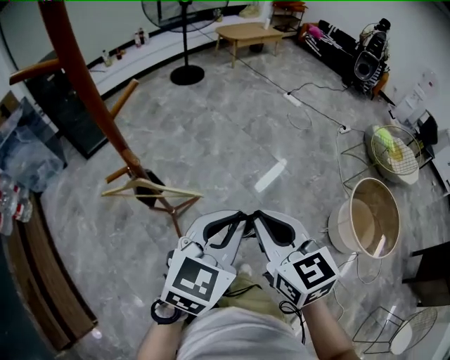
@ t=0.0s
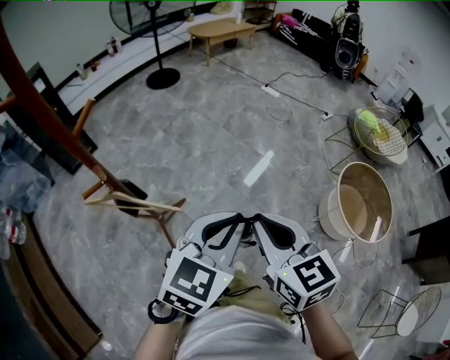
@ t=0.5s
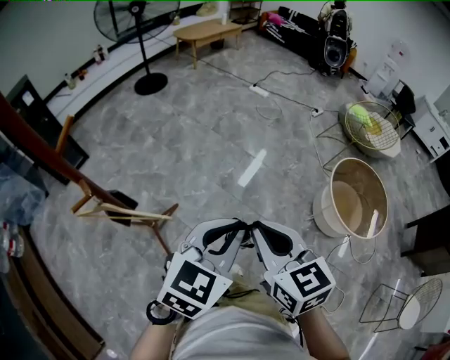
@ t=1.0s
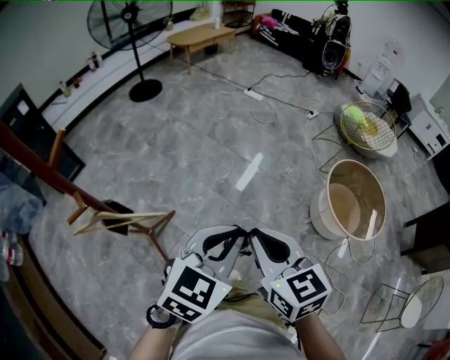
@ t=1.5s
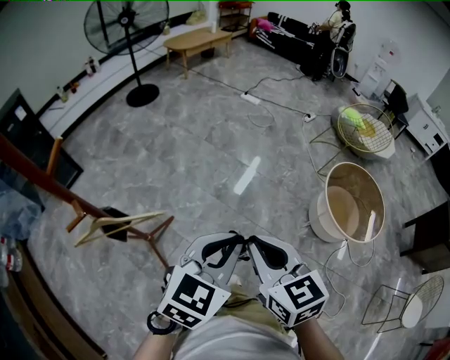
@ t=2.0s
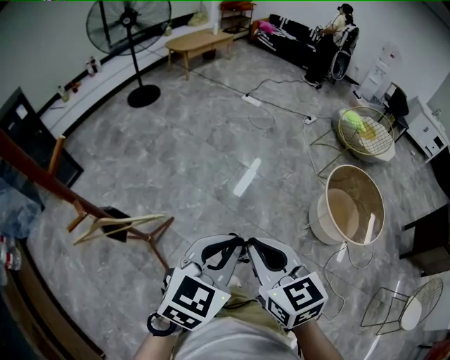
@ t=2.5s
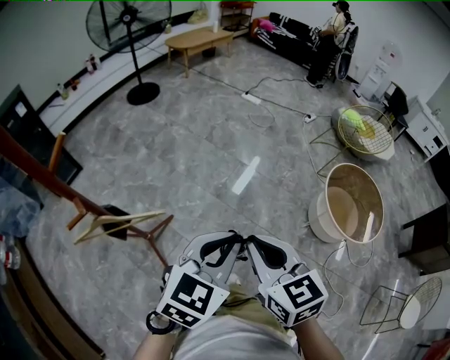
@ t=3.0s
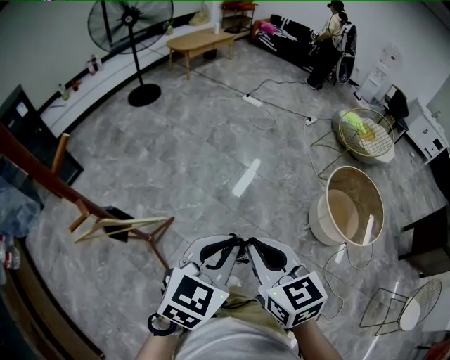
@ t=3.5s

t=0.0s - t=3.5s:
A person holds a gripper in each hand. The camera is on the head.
t=0.0s - t=2.0s: The two grippers go roughly 10 cm to the right.
t=2.0s - t=3.5s: The grippers stay close to where they were, moving slightly.

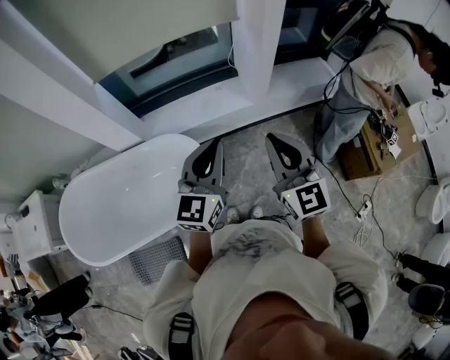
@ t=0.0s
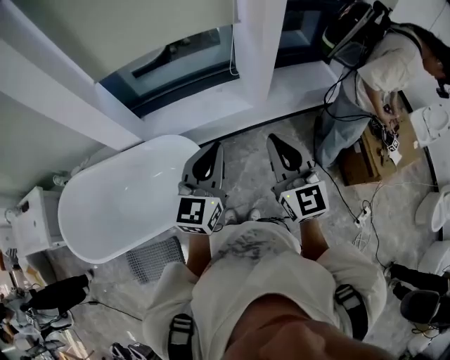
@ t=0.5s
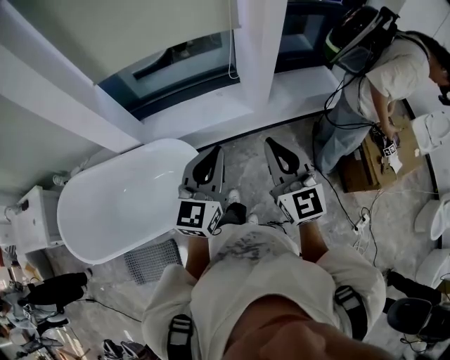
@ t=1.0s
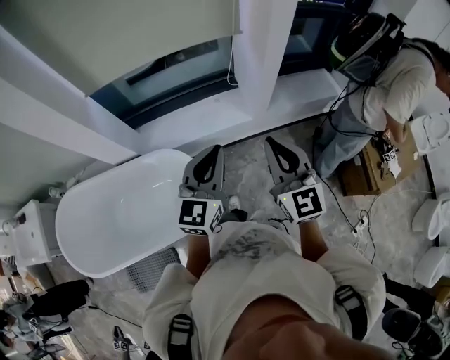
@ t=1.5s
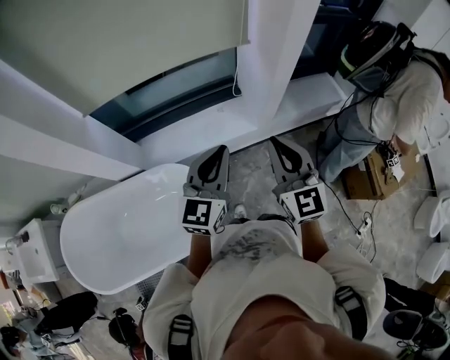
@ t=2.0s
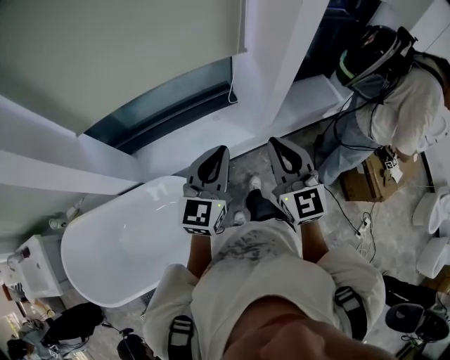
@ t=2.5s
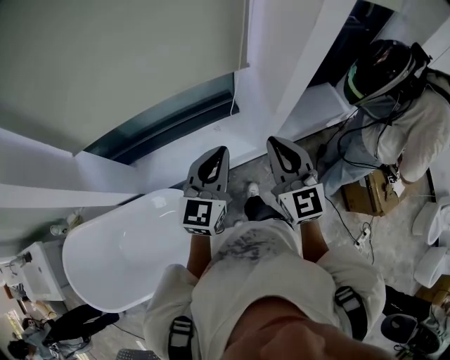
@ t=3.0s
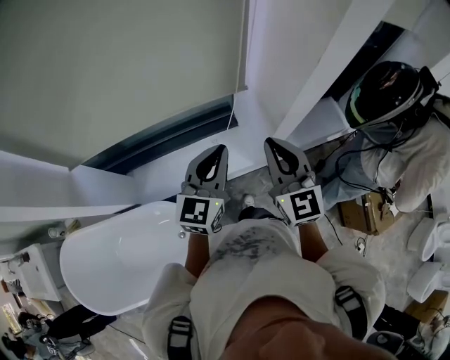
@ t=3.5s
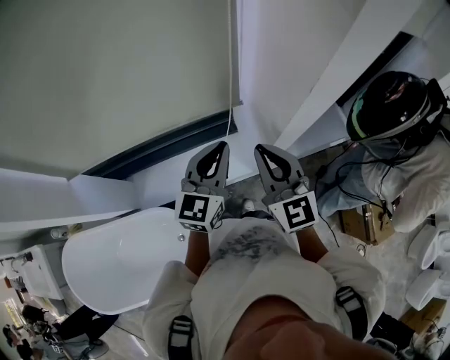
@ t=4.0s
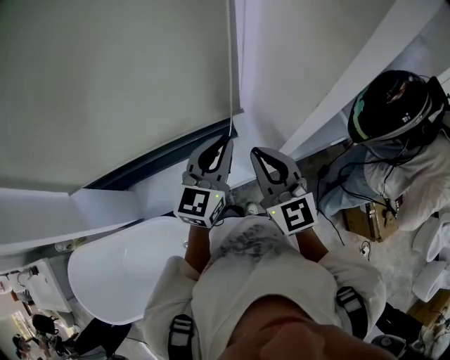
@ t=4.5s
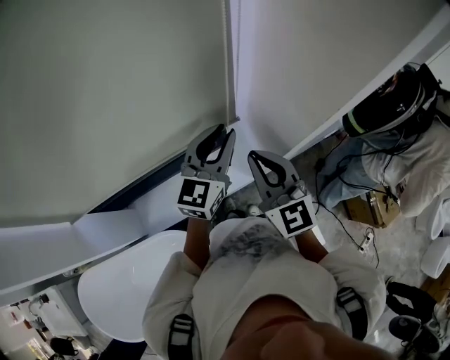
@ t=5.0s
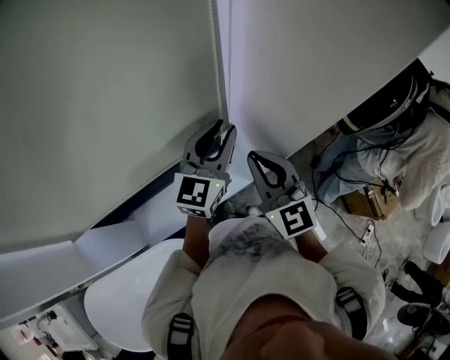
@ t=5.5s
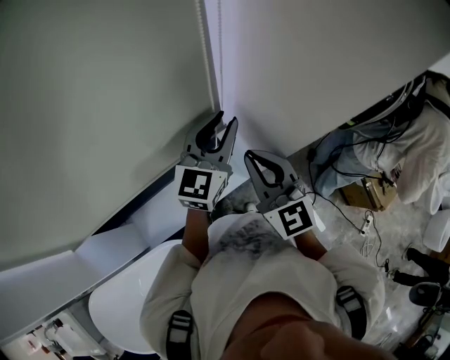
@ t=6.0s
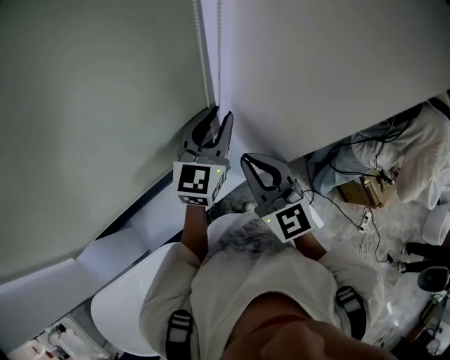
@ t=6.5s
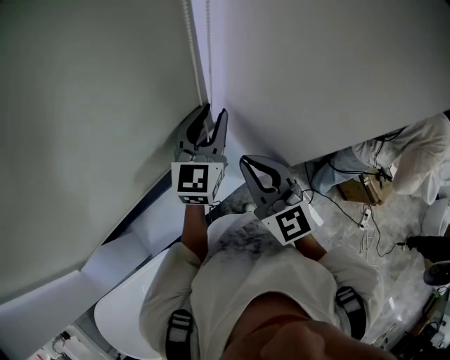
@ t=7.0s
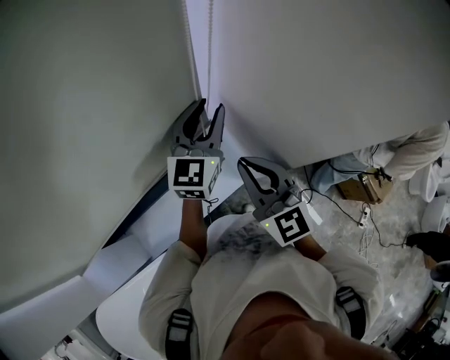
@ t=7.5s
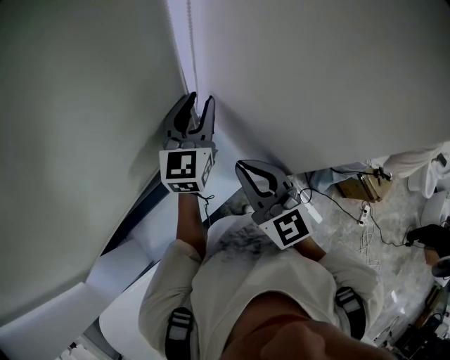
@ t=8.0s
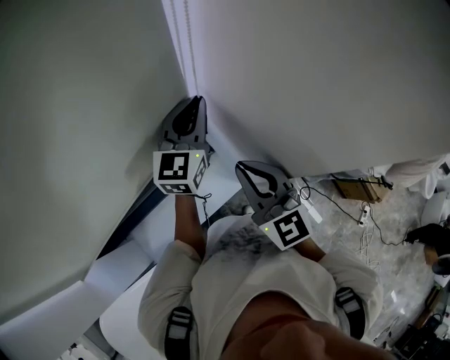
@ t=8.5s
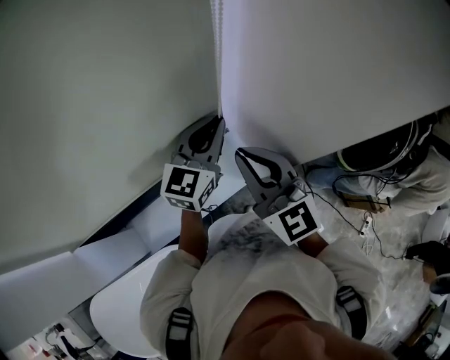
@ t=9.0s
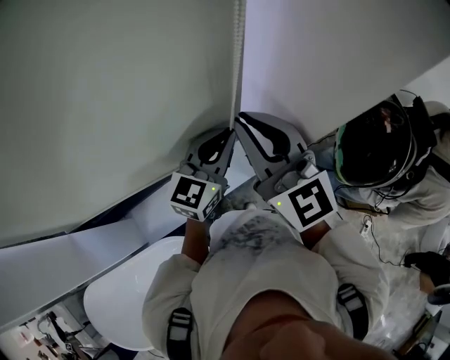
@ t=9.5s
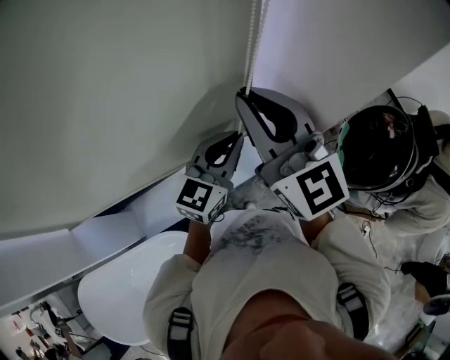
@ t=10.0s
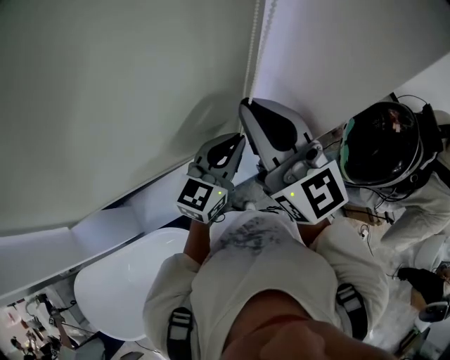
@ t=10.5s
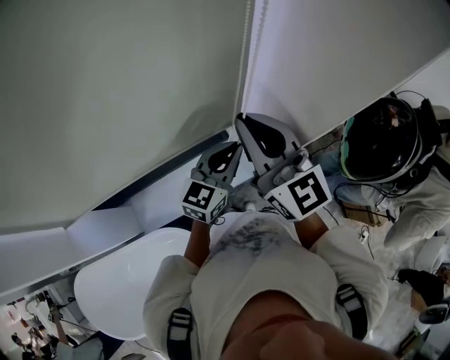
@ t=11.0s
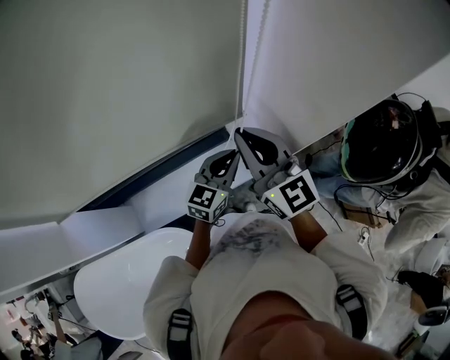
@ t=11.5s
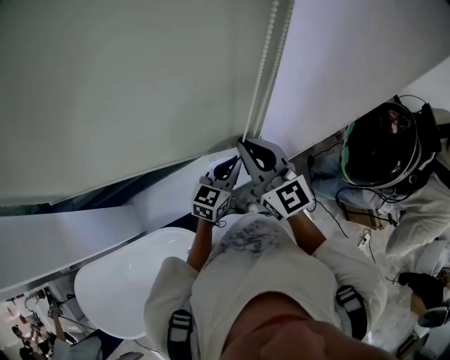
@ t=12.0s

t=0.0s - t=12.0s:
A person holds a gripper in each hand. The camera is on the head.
t=0.0s - t=2.0s: The grippers both shift forward by approximately 20 cm.
t=2.0s - t=4.0s: The grippers both shift forward by some 30 cm.
t=4.0s - t=6.0s: The left gripper travels forward by approximately 15 cm, and opens, while the right gripper shifts approximately 5 cm forward.
t=6.0s - t=8.0s: The left gripper is displaced forward by approximately 10 cm.
t=8.0s - t=10.0s: The left gripper heads backward, covering roughly 15 cm, and closes its fingers, while the right gripper is displaced upward by approximately 15 cm.
t=10.0s - t=12.0s: The two grippers go about 15 cm downward.

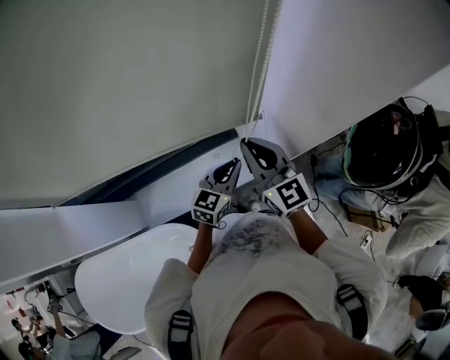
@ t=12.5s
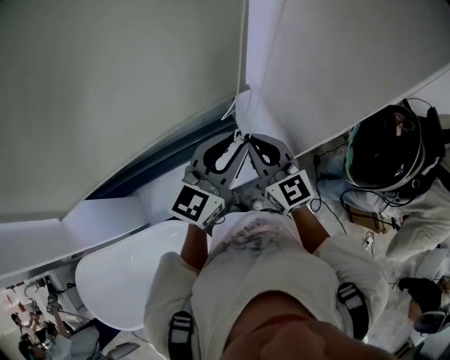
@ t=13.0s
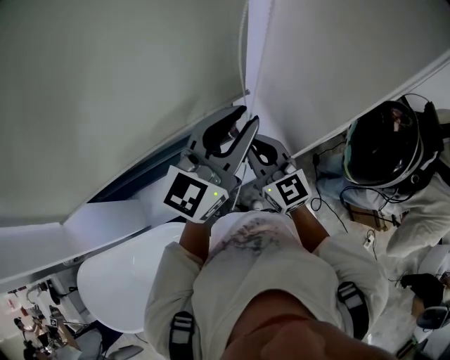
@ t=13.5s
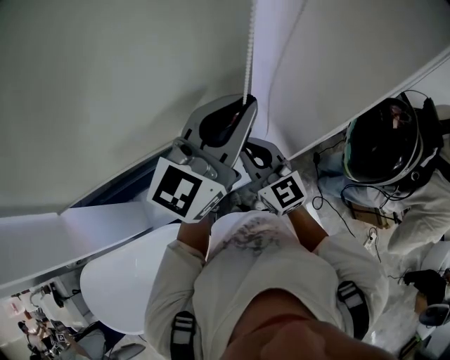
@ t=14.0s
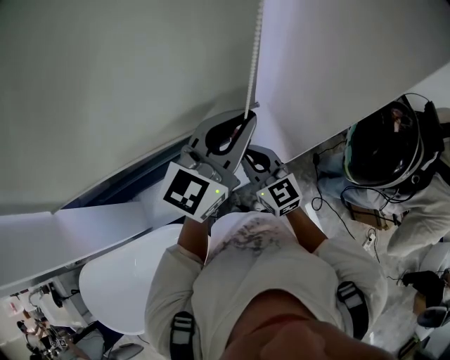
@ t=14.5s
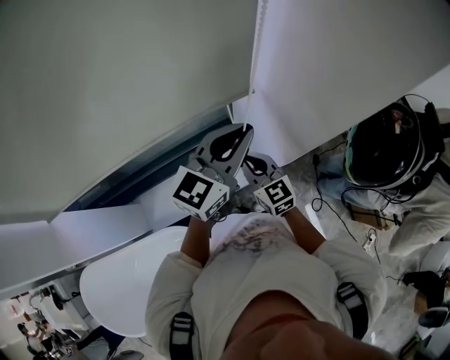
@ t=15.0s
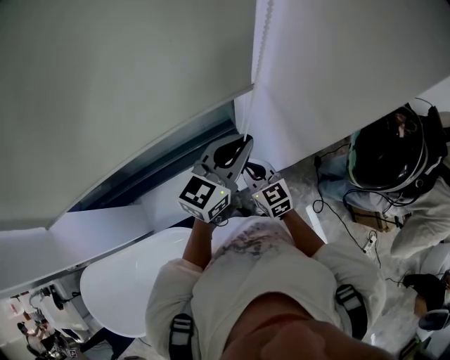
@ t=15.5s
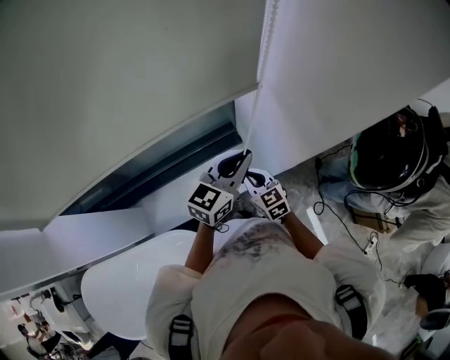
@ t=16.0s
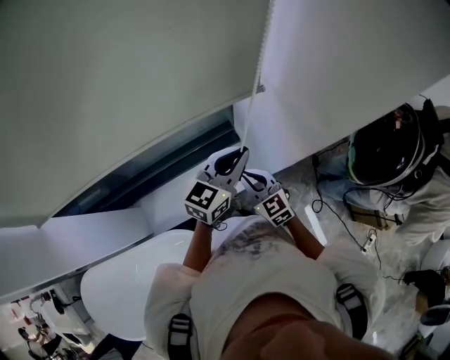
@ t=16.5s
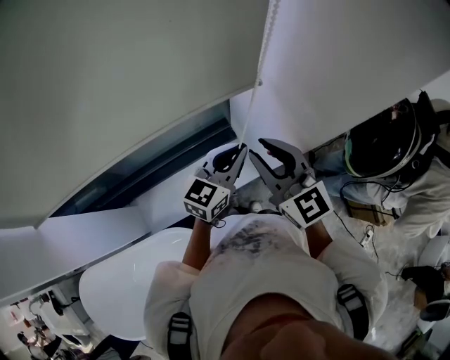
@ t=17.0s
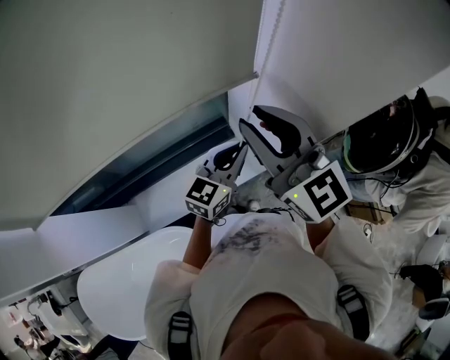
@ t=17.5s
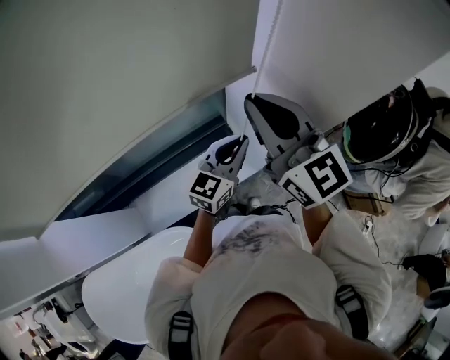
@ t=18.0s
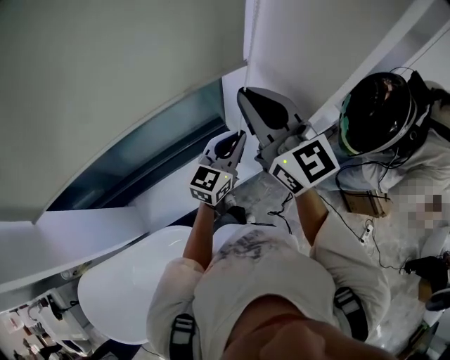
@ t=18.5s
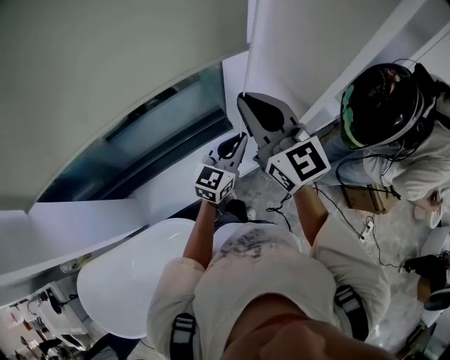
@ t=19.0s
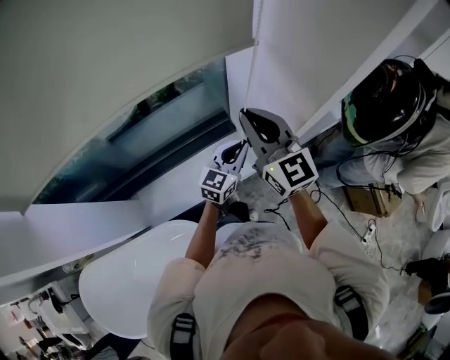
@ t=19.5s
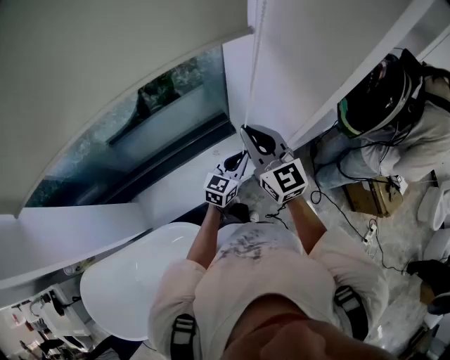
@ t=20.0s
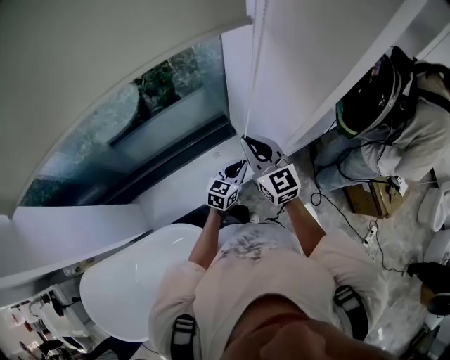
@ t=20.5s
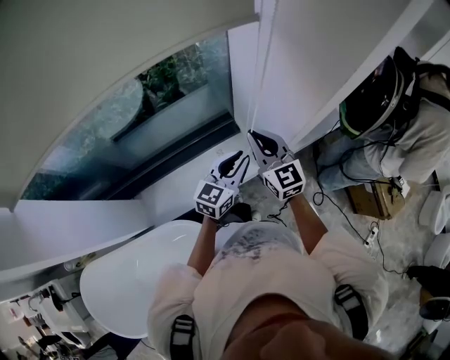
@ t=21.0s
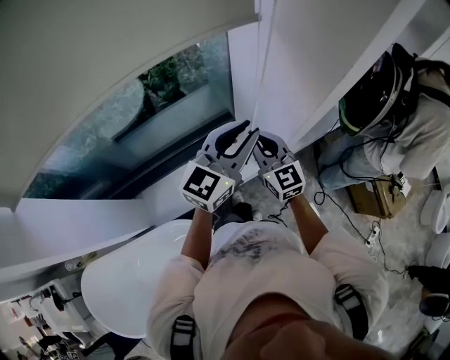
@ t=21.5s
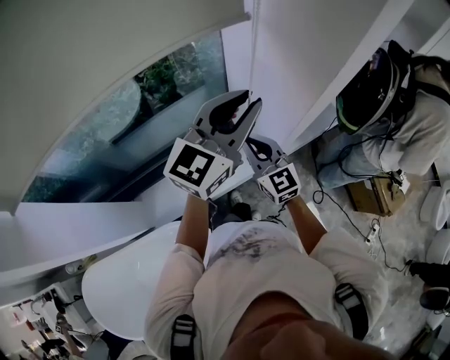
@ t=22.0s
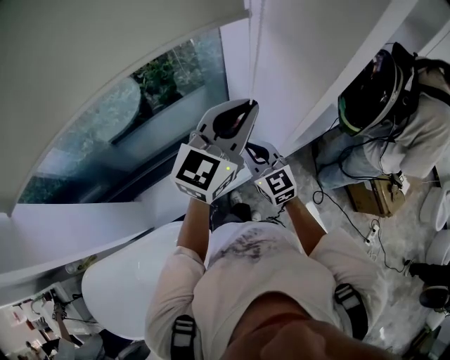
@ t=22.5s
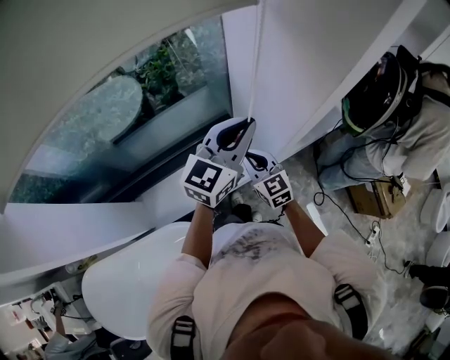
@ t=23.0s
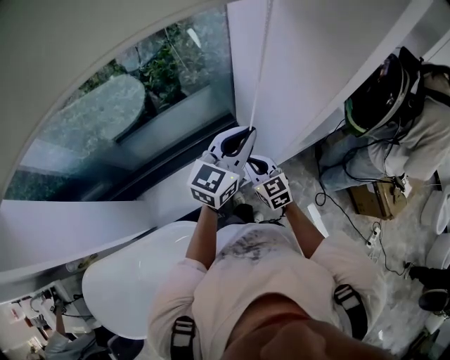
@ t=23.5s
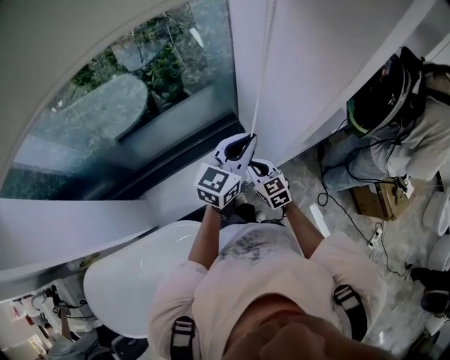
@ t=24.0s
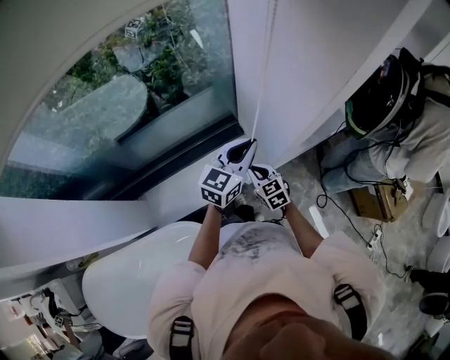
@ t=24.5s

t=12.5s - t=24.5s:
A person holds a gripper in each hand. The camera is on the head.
t=12.5s - t=14.5s: The left gripper heads upward, covering approximately 25 cm, and rotates approximately 30 degrees.
t=14.5s - t=16.5s: The two grippers go some 15 cm downward.
t=16.5s - t=18.5s: The right gripper shifts roughly 30 cm upward, and tips its fingers upward by about 30 degrees.
t=18.5s - t=20.5s: The two grippers go some 20 cm downward.
t=20.5s - t=22.5s: The left gripper is displaced upward by some 35 cm, and rotates approximately 30 degrees.
t=22.5s - t=24.5s: The two grippers go roughly 20 cm downward. The right gripper rotates some 20 degrees.
